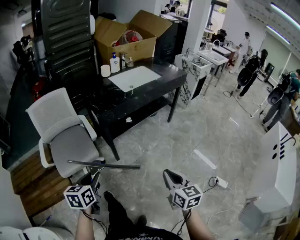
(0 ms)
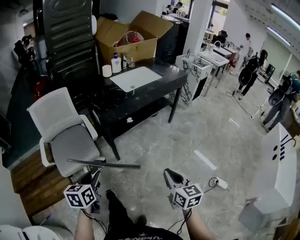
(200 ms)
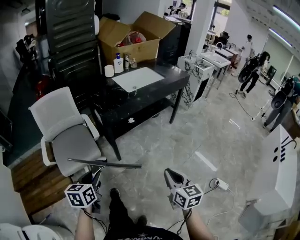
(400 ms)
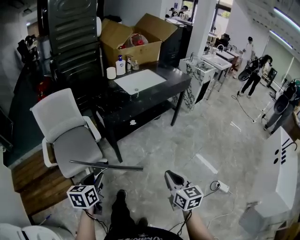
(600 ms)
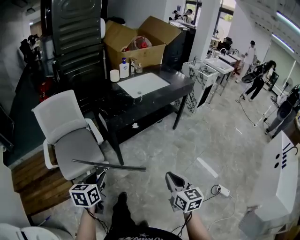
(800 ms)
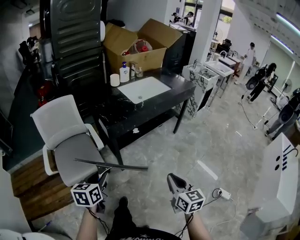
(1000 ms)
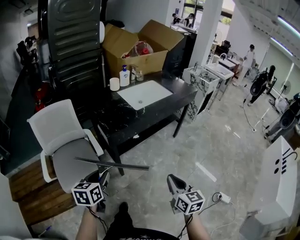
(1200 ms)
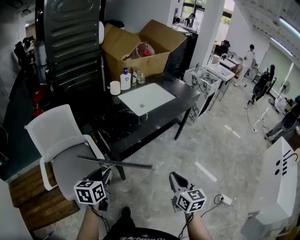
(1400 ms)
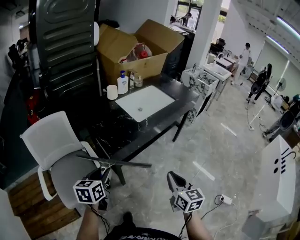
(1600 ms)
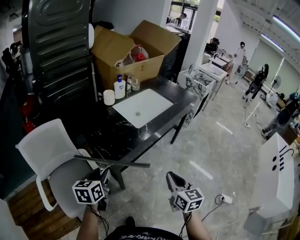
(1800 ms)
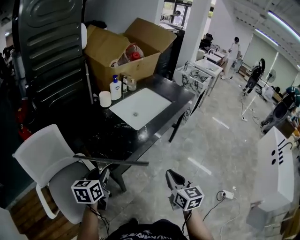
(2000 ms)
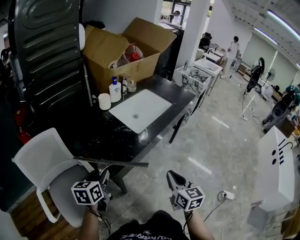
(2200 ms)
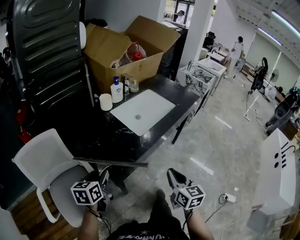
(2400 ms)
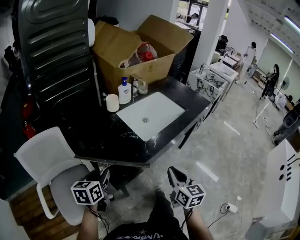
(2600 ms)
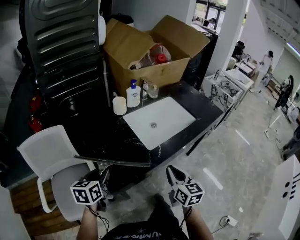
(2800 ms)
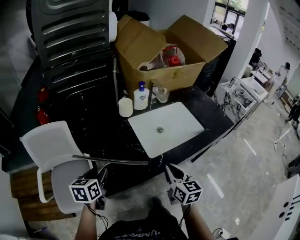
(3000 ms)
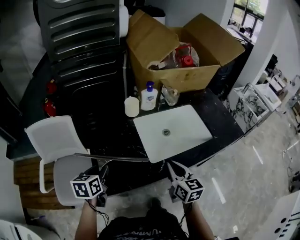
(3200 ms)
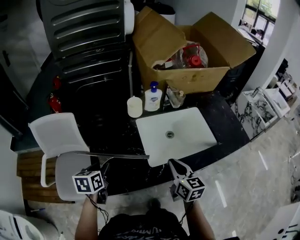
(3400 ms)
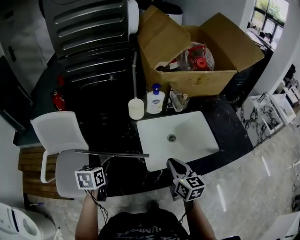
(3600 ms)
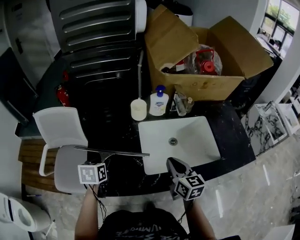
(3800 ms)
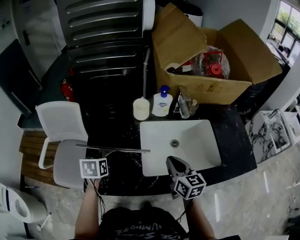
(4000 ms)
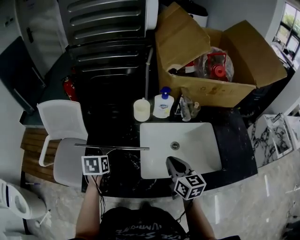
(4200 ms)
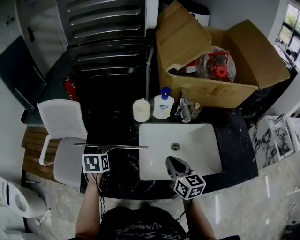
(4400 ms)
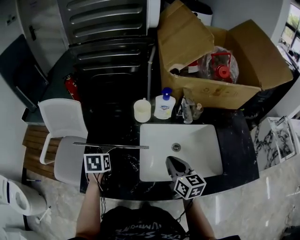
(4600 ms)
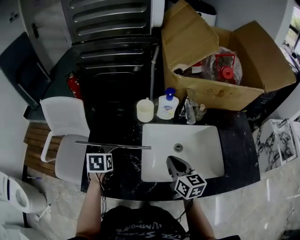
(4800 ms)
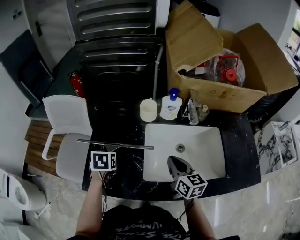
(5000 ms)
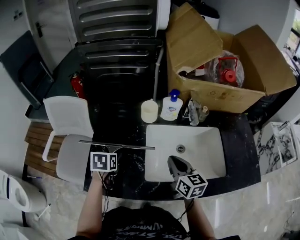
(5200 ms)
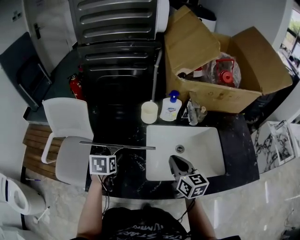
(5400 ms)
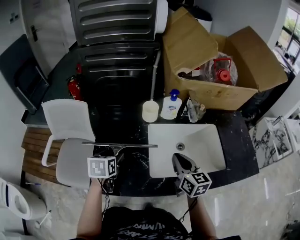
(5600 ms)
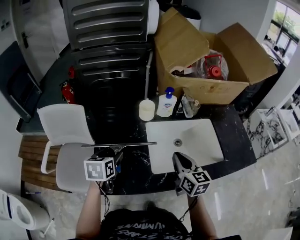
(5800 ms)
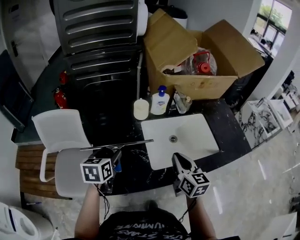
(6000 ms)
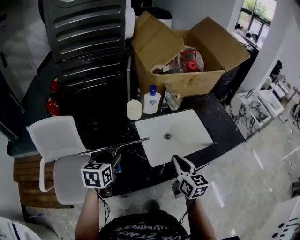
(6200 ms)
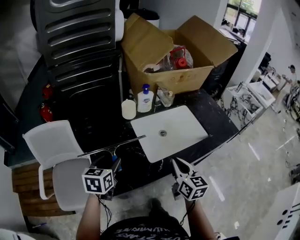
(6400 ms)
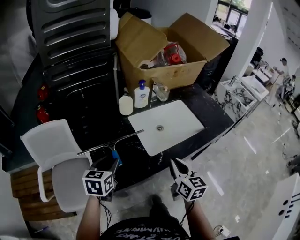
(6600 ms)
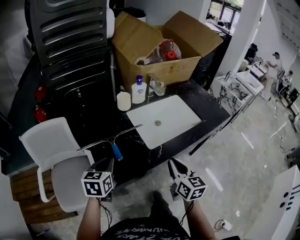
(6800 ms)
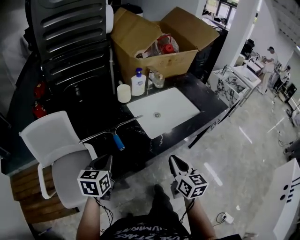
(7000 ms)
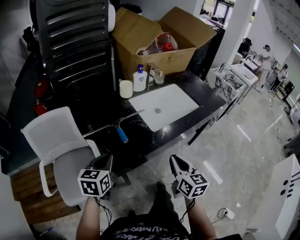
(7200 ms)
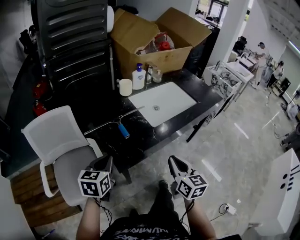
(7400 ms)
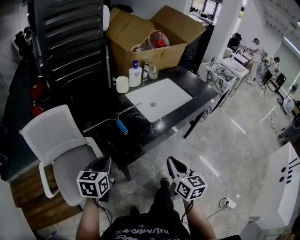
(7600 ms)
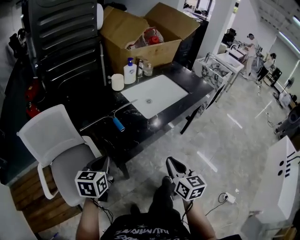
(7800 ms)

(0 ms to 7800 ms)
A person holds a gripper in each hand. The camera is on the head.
0 ms - 1600 ms: The grippers both shift forward by roughly 30 cm.
1600 ms - 3200 ms: The left gripper ends up approximately 30 cm from where it was, and swivels roughly 30 degrees; the right gripper shifts by some 40 cm, and rotates about 20 degrees.
3200 ms - 4600 ms: The left gripper changes place by some 15 cm, and swivels some 30 degrees. Meanwhile the right gripper shifts by approximately 20 cm, and changes its angle by some 20 degrees.
4600 ms - 6200 ms: The right gripper moves approximately 15 cm, and changes its angle by roughly 20 degrees. The left gripper shifts approximately 10 cm upward, turns by some 30 degrees, and opens up.
6200 ms - 7800 ms: The grippers both shift backward by approximately 30 cm. The left gripper closes up.

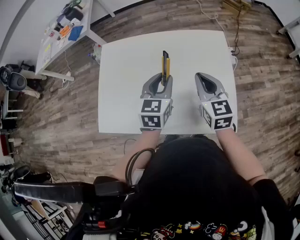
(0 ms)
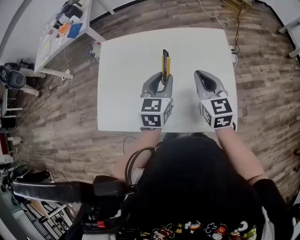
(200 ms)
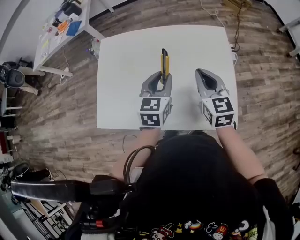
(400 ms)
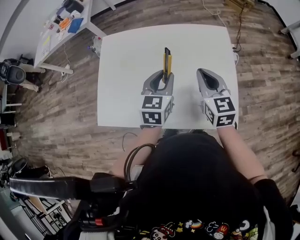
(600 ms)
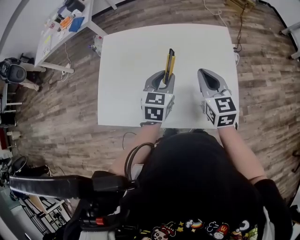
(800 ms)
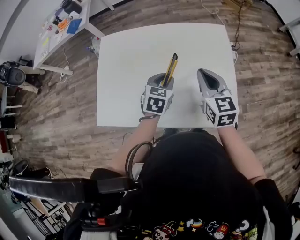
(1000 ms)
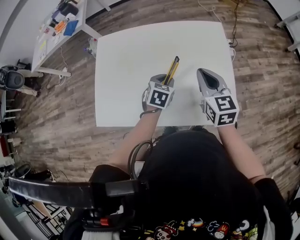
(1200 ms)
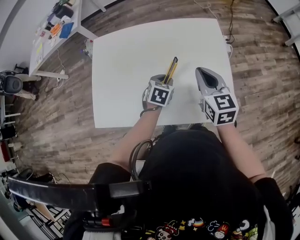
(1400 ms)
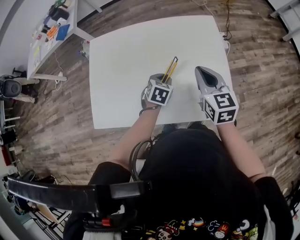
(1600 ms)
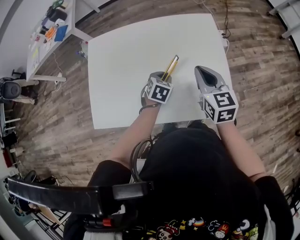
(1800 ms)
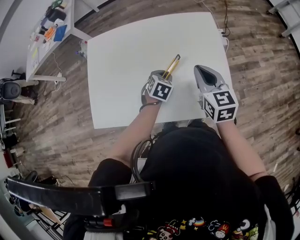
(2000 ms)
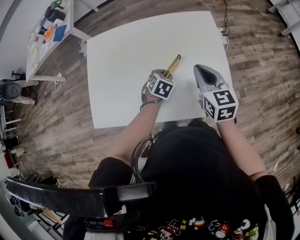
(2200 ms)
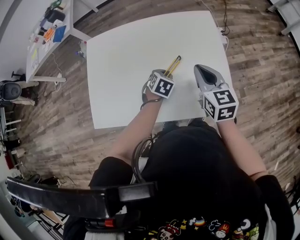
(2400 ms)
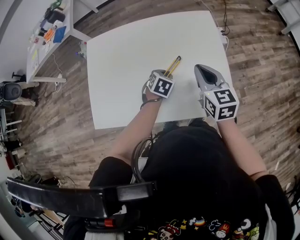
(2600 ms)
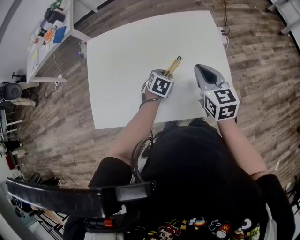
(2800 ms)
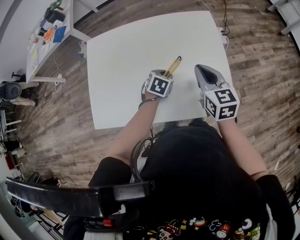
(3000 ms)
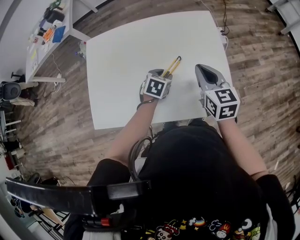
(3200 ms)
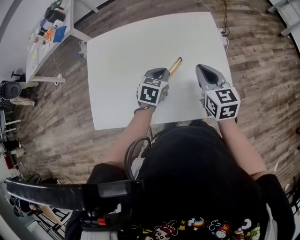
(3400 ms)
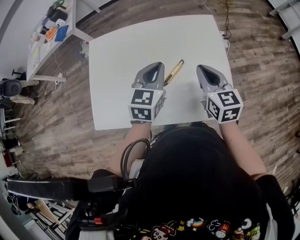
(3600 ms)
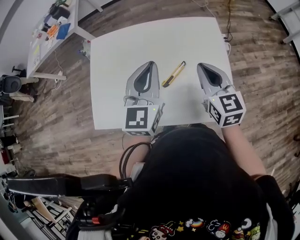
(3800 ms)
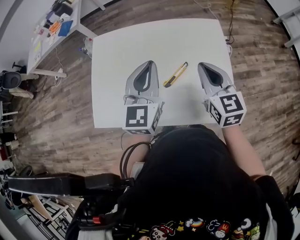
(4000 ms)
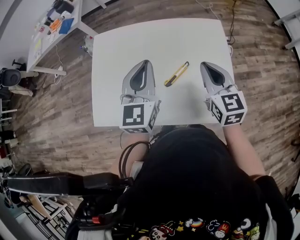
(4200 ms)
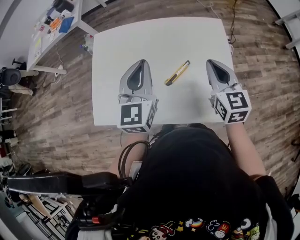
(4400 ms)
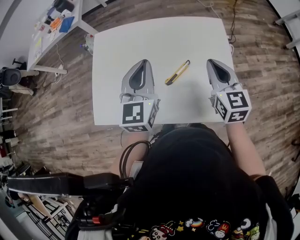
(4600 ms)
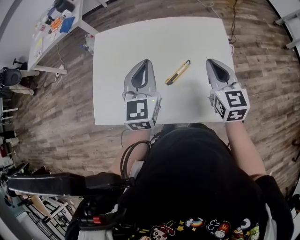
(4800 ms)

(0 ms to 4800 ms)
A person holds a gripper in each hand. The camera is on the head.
0 ms - 1600 ms: The left gripper moves downward, roughly 20 cm, and swivels roughly 30 degrees.
1600 ms - 3200 ms: The grippers make only small movements.
3200 ms - 4800 ms: The left gripper travels upward by some 25 cm, points its fingers roughly 40 degrees further upward, and closes.

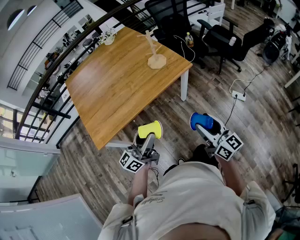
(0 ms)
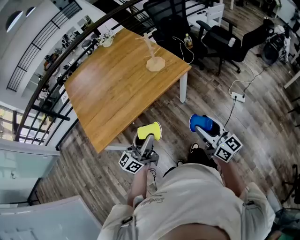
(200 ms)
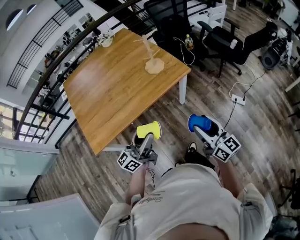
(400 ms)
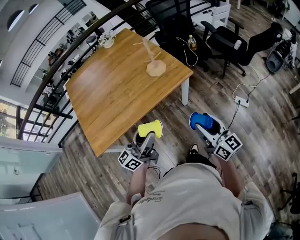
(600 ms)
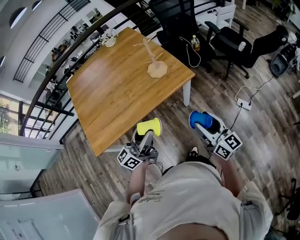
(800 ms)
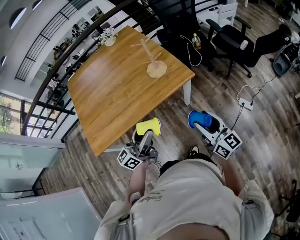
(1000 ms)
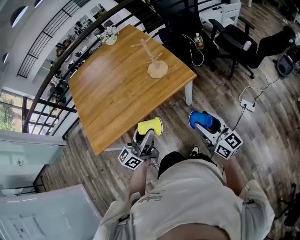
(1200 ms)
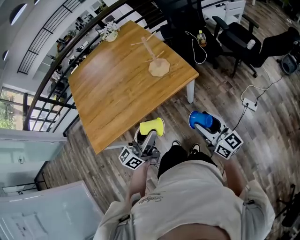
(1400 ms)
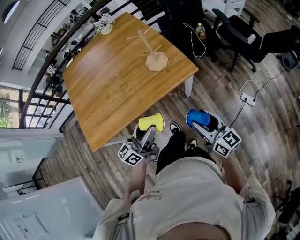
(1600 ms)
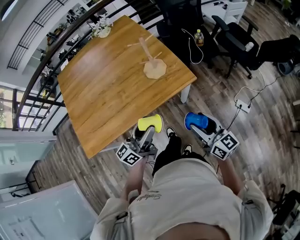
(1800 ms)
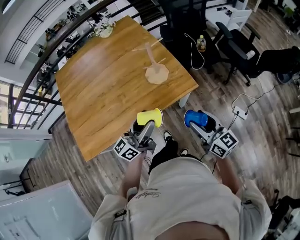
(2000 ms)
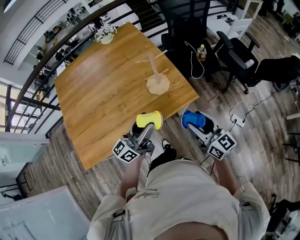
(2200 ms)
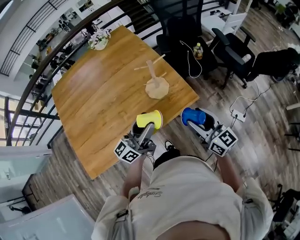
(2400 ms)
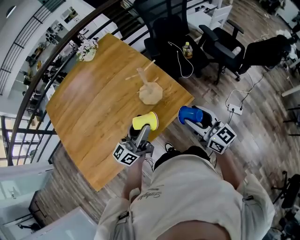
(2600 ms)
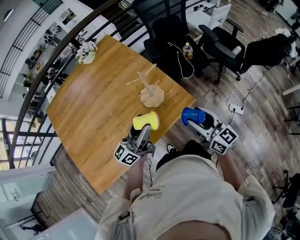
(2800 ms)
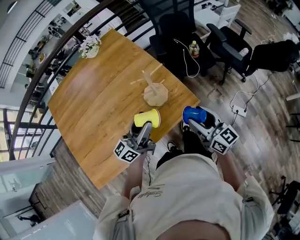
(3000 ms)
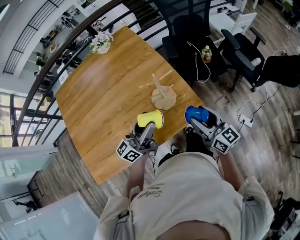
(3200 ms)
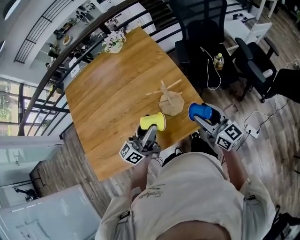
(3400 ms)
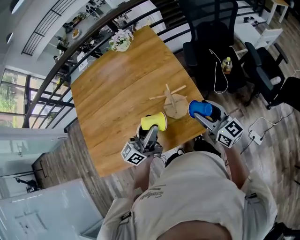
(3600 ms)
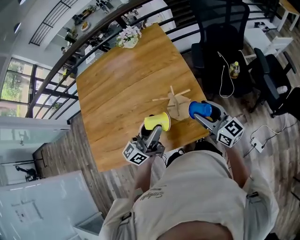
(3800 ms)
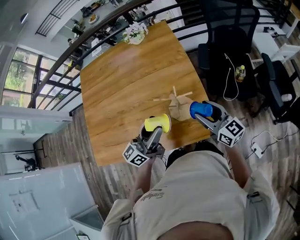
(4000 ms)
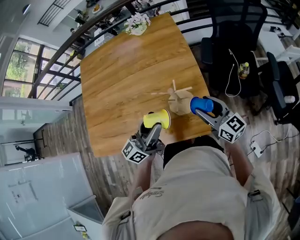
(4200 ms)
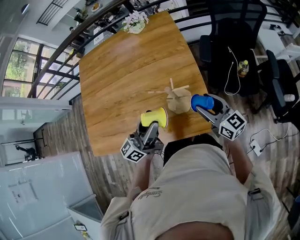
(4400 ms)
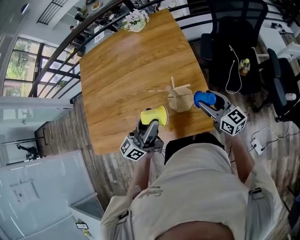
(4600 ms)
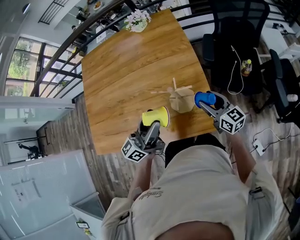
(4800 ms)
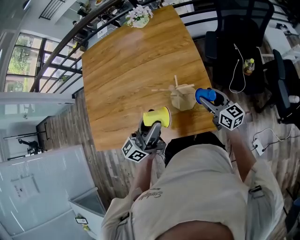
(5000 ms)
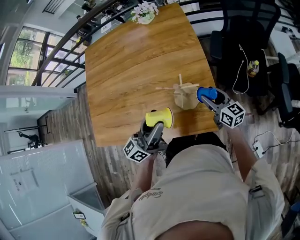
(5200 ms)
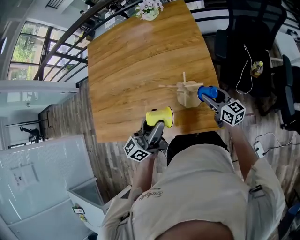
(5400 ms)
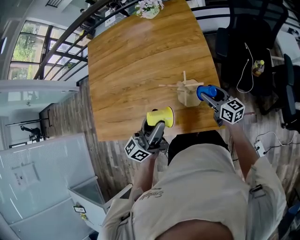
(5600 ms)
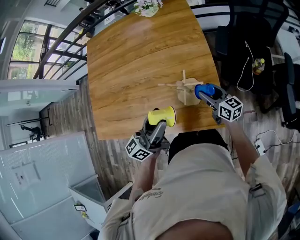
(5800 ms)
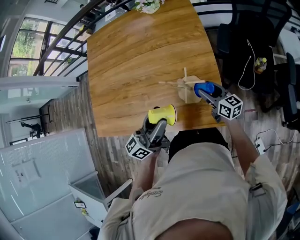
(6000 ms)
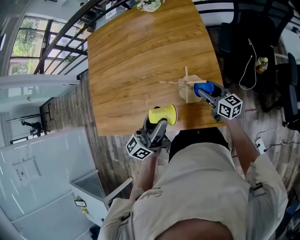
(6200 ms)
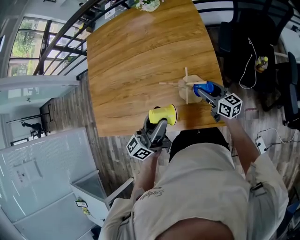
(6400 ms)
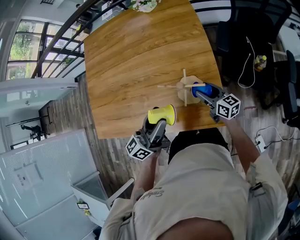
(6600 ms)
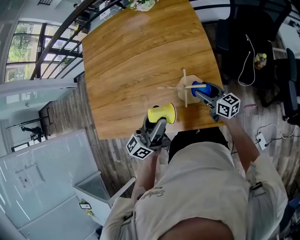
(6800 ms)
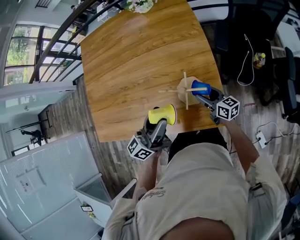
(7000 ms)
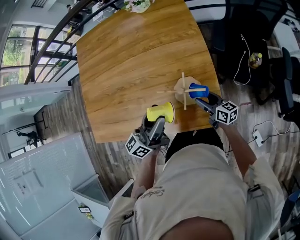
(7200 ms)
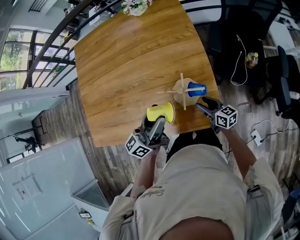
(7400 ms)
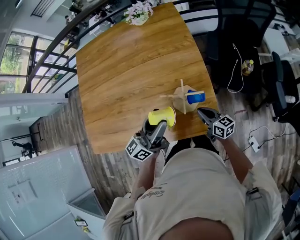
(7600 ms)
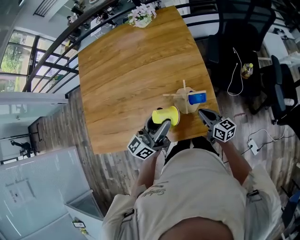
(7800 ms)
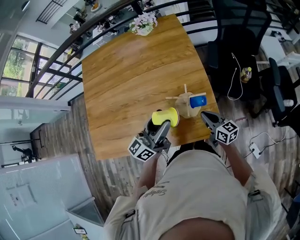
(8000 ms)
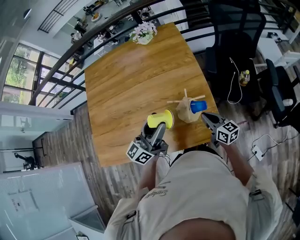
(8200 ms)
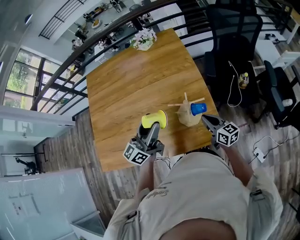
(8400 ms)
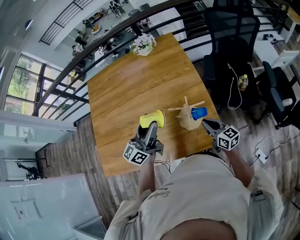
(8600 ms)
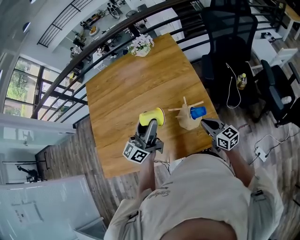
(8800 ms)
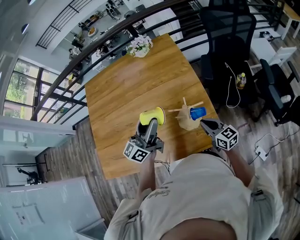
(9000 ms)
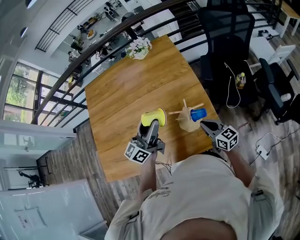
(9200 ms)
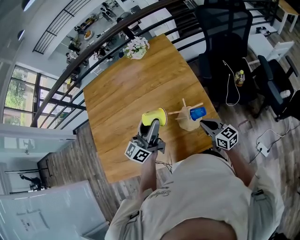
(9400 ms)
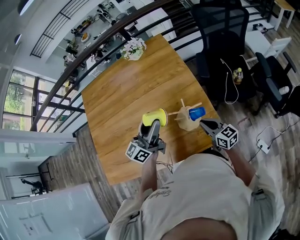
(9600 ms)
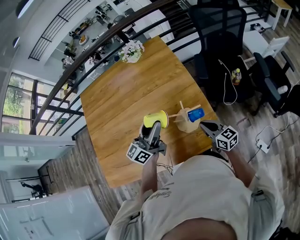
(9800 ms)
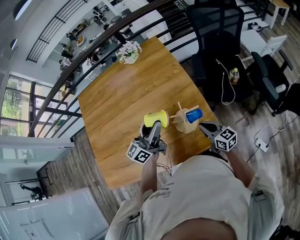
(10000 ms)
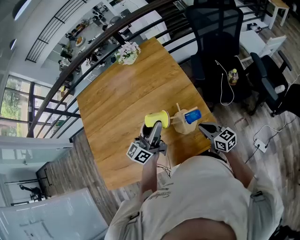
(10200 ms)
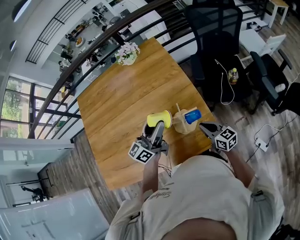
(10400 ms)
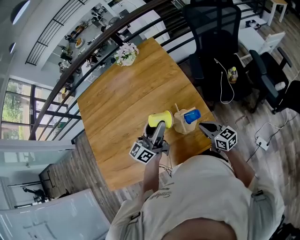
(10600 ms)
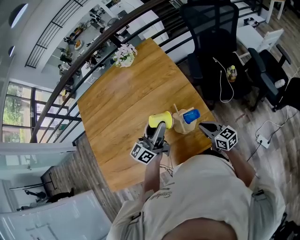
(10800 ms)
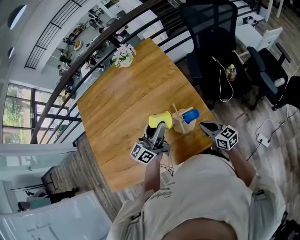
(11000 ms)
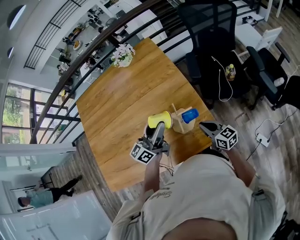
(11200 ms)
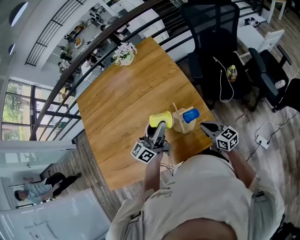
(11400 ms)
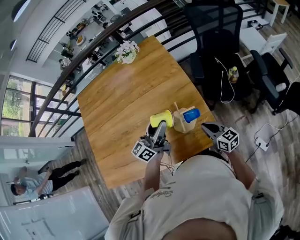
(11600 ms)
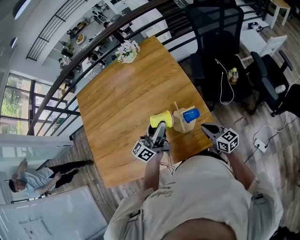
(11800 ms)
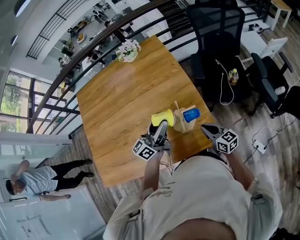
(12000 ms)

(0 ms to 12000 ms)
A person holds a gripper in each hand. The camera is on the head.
0 ms - 1600 ms: The right gripper heads forward, covering roughly 20 cm. Meanwhile the left gripper shifts roughly 20 cm forward and to the right.
1600 ms - 3000 ms: The two grippers go roughly 25 cm forward.
3000 ms - 4400 ms: The left gripper ends up roughly 5 cm from where it was, and swivels about 30 degrees. The right gripper changes place by roughly 20 cm, and turns by approximately 30 degrees.
4400 ms - 6000 ms: The right gripper travels downward and forward by some 15 cm.
6000 ms - 7600 ms: The right gripper is displaced backward by some 5 cm, and closes its fingers.
7600 ms - 9000 ms: The left gripper is displaced upward, forward and to the left by approximately 10 cm; the right gripper is displaced upward by about 10 cm.
9000 ms - 10400 ms: The left gripper heads to the right, covering roughly 5 cm.
10400 ms - 12000 ms: There are only small adjustments of the grippers.
